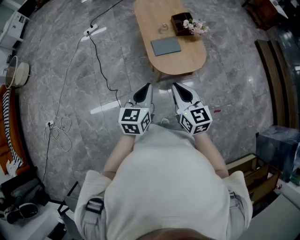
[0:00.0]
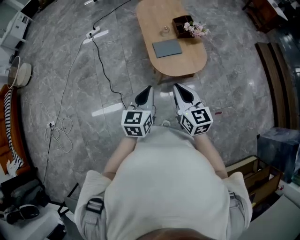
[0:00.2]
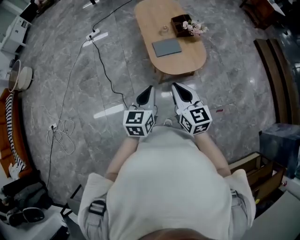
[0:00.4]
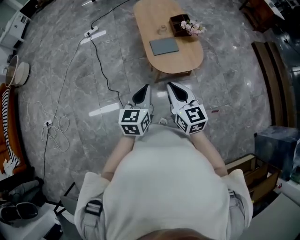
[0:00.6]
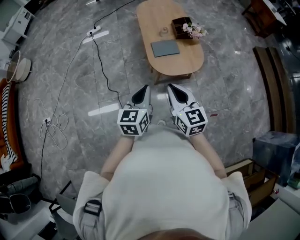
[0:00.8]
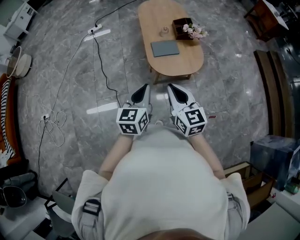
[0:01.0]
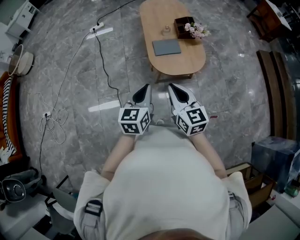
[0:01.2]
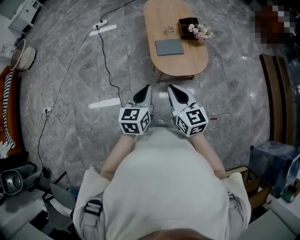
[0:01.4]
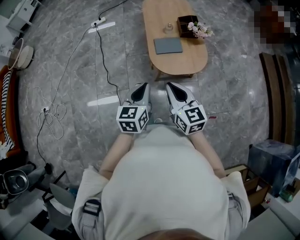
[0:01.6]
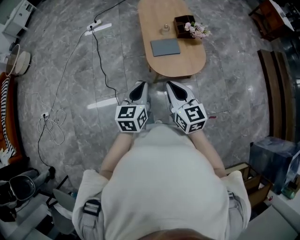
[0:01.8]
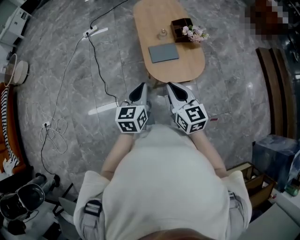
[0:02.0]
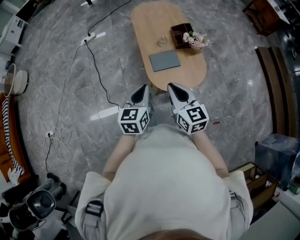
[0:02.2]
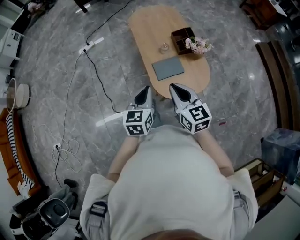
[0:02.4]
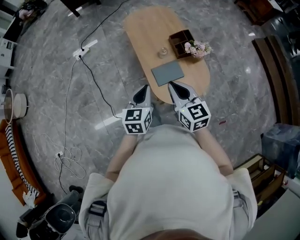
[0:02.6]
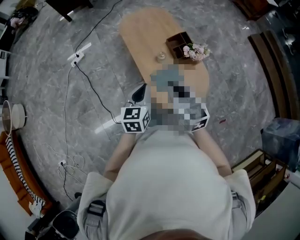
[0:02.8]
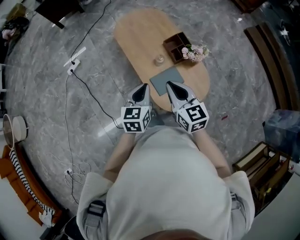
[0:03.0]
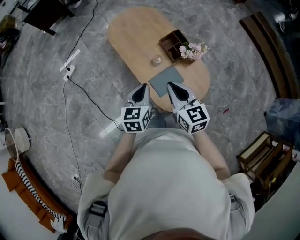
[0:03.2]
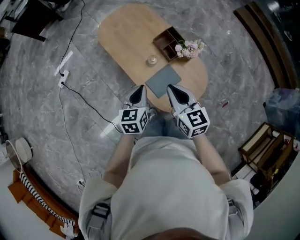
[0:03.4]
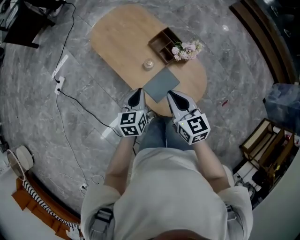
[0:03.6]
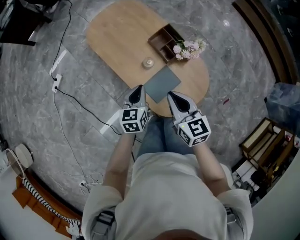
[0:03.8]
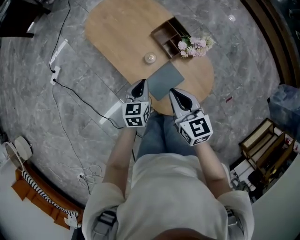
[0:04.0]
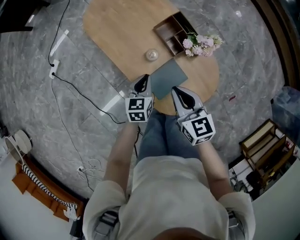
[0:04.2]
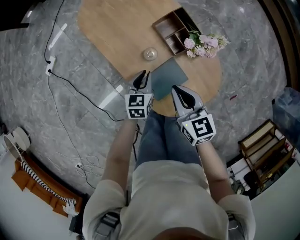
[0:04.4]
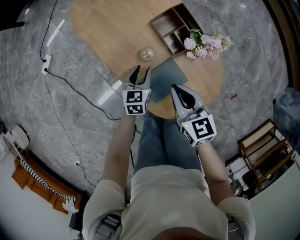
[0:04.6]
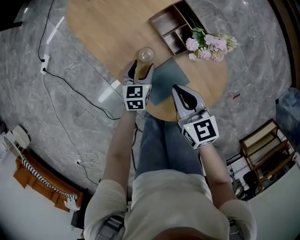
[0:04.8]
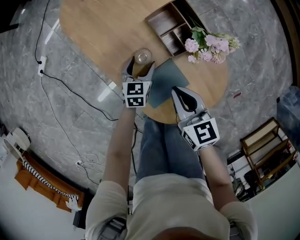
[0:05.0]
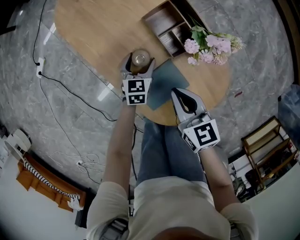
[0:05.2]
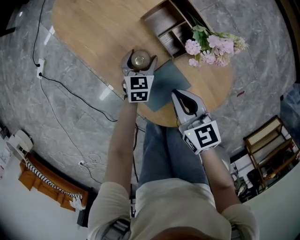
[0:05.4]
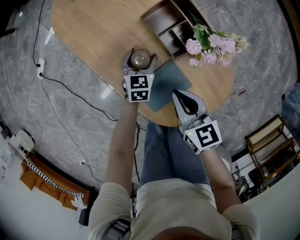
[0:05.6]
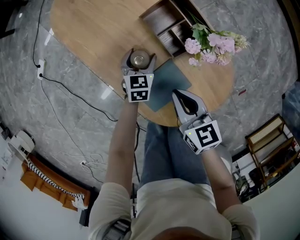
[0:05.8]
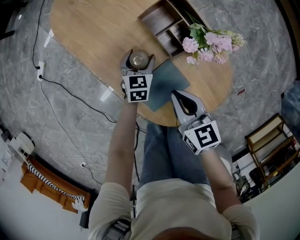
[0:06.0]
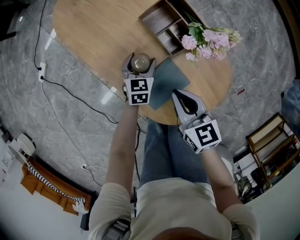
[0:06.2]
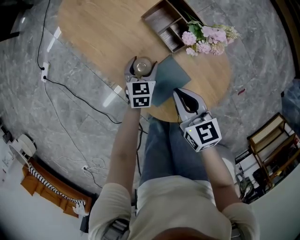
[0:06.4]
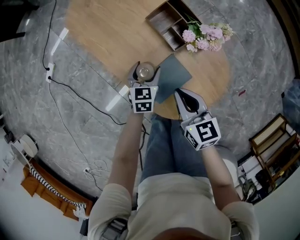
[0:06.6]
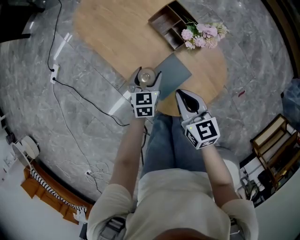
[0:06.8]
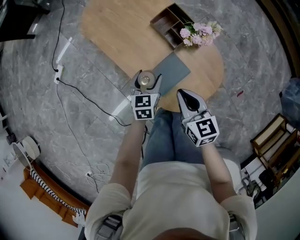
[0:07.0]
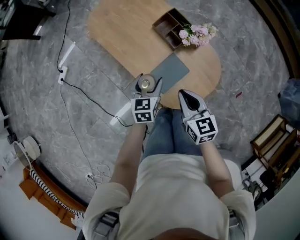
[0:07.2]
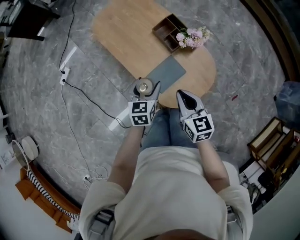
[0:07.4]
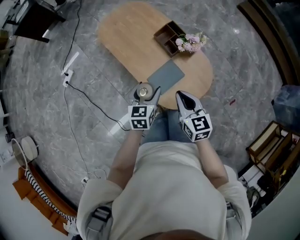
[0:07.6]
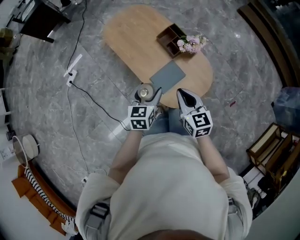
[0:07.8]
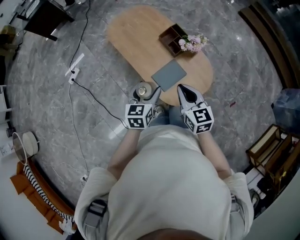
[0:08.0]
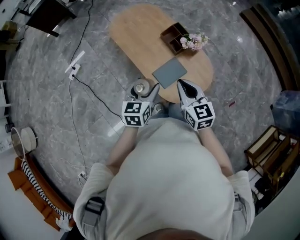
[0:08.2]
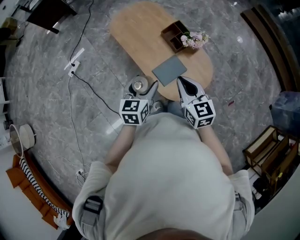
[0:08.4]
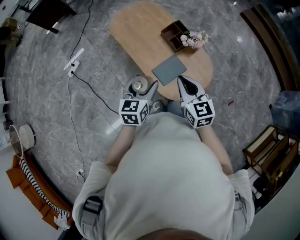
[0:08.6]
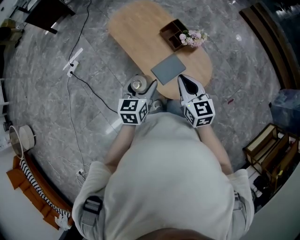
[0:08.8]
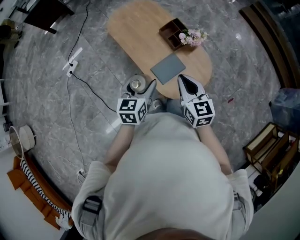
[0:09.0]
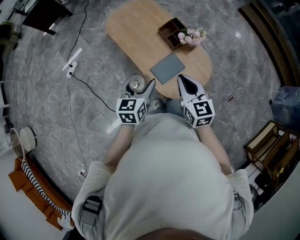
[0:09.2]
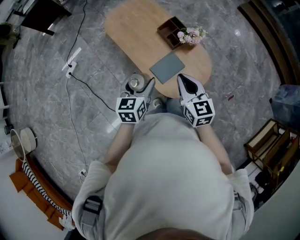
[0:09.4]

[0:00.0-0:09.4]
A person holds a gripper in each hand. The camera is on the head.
0:00.0 to 0:01.6: The grippers move only a little.
0:01.6 to 0:03.2: The left gripper shifts by approximately 40 cm, and swivels roughly 30 degrees, while the right gripper ends up some 40 cm from where it was, and changes its angle by about 30 degrees.
0:03.2 to 0:04.8: The two grippers go some 30 cm downward and forward. The left gripper opens up.
0:04.8 to 0:06.2: The left gripper shifts some 5 cm downward.
0:06.2 to 0:07.8: The left gripper heads upward and backward, covering about 40 cm. Meanwhile the right gripper goes about 25 cm upward and backward.
0:07.8 to 0:09.4: The left gripper travels upward by roughly 5 cm; the right gripper shifts by approximately 5 cm.

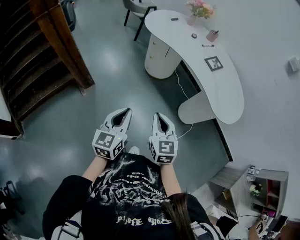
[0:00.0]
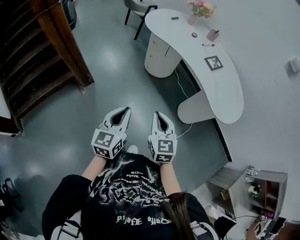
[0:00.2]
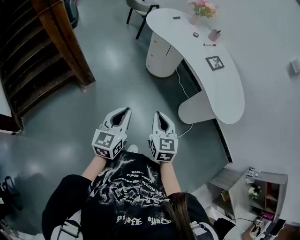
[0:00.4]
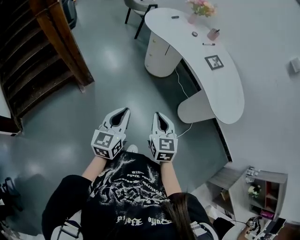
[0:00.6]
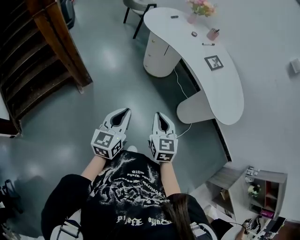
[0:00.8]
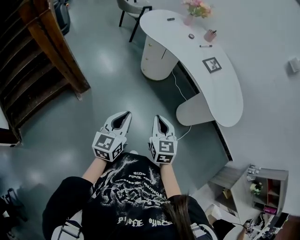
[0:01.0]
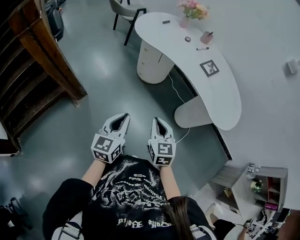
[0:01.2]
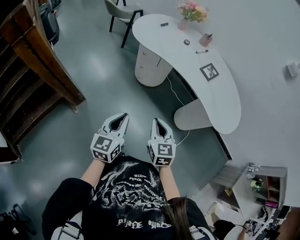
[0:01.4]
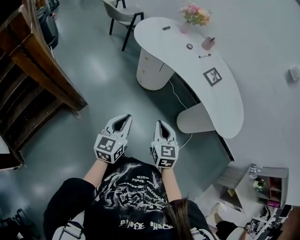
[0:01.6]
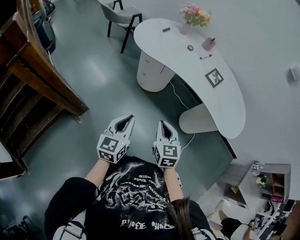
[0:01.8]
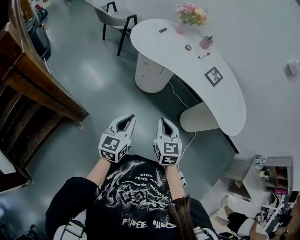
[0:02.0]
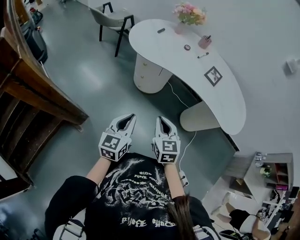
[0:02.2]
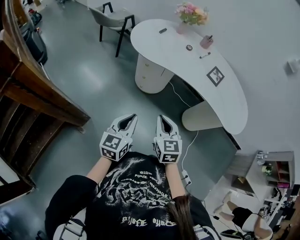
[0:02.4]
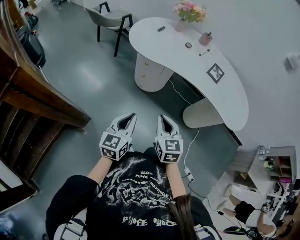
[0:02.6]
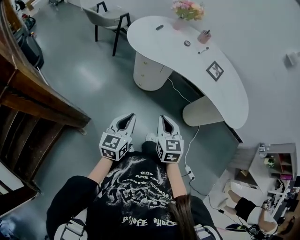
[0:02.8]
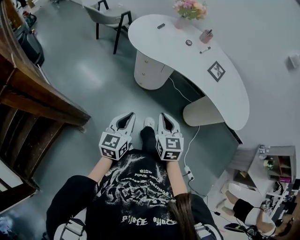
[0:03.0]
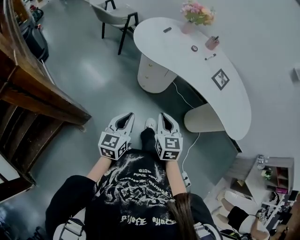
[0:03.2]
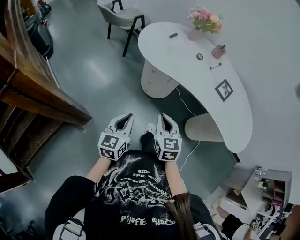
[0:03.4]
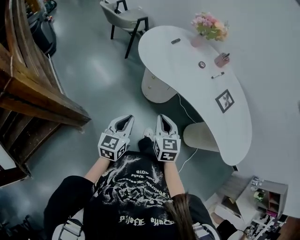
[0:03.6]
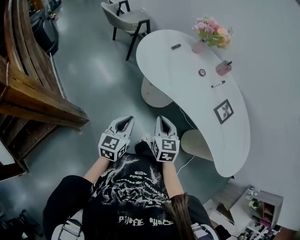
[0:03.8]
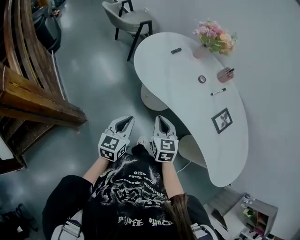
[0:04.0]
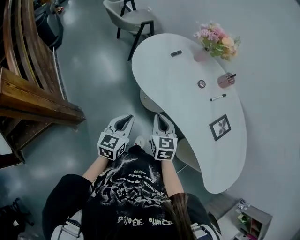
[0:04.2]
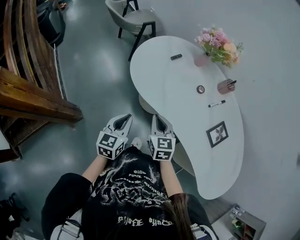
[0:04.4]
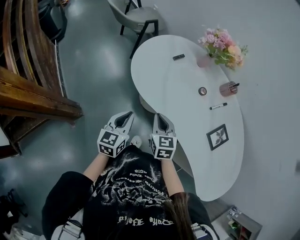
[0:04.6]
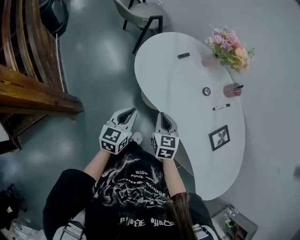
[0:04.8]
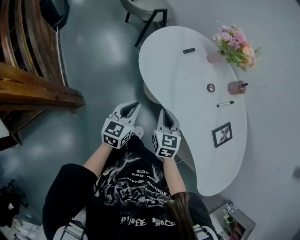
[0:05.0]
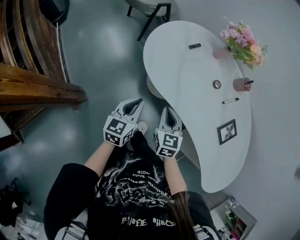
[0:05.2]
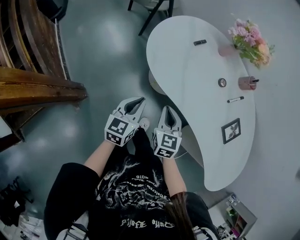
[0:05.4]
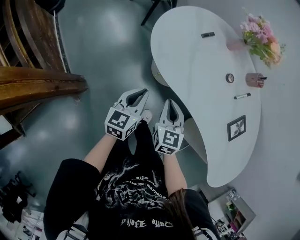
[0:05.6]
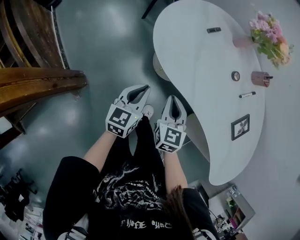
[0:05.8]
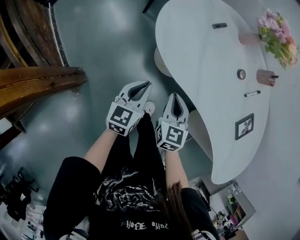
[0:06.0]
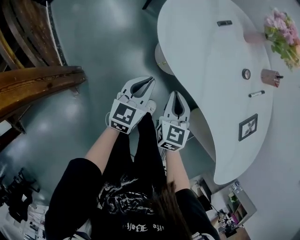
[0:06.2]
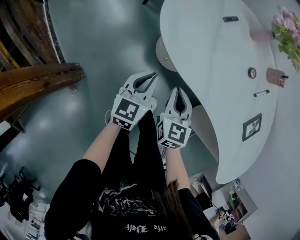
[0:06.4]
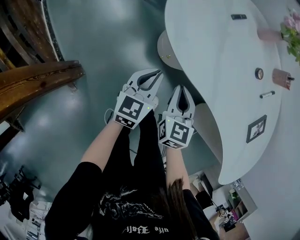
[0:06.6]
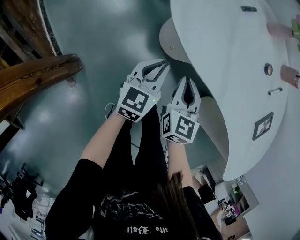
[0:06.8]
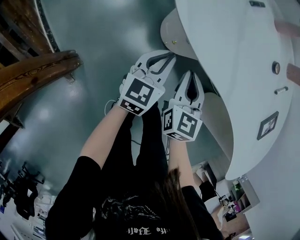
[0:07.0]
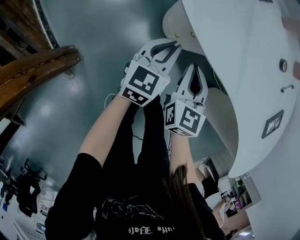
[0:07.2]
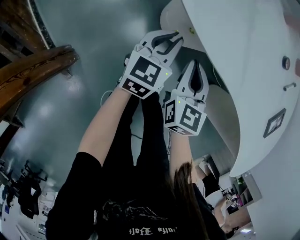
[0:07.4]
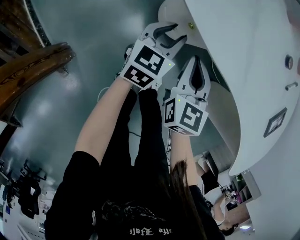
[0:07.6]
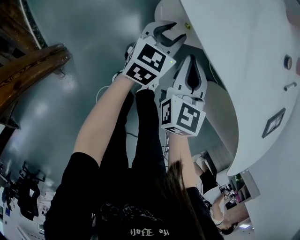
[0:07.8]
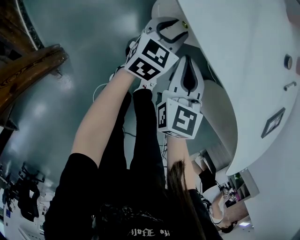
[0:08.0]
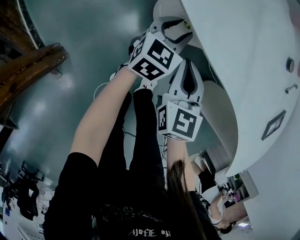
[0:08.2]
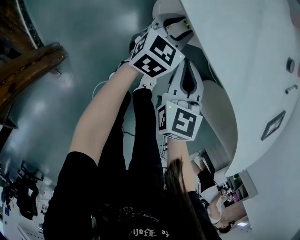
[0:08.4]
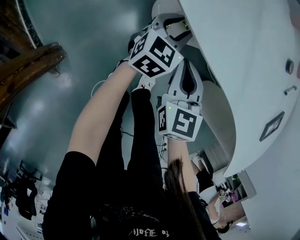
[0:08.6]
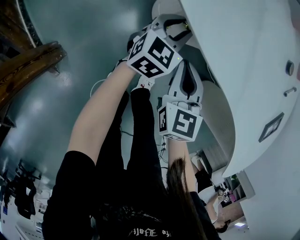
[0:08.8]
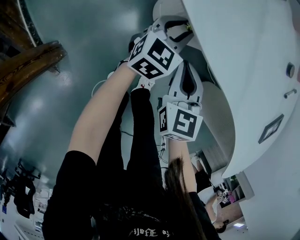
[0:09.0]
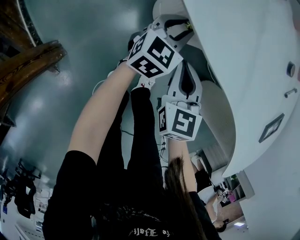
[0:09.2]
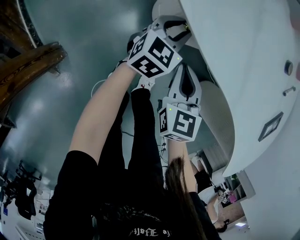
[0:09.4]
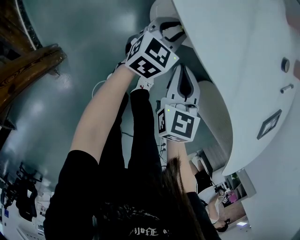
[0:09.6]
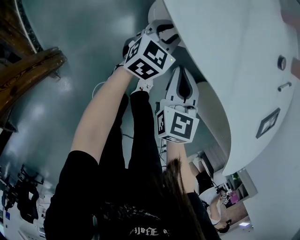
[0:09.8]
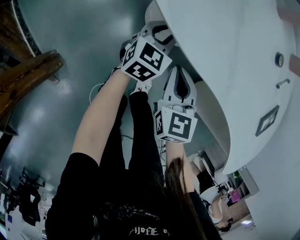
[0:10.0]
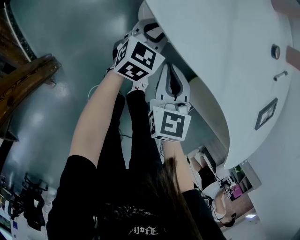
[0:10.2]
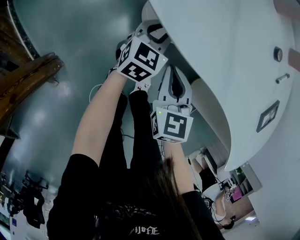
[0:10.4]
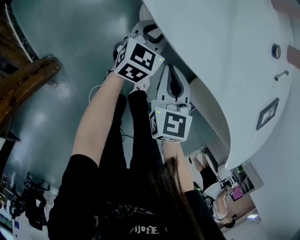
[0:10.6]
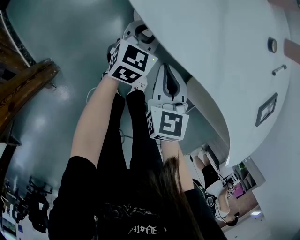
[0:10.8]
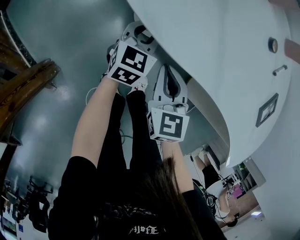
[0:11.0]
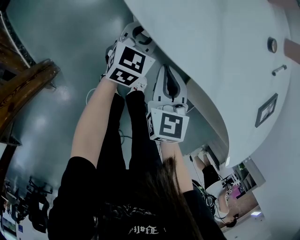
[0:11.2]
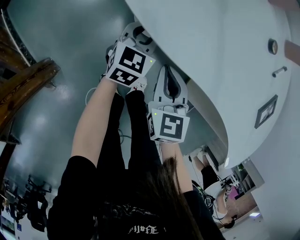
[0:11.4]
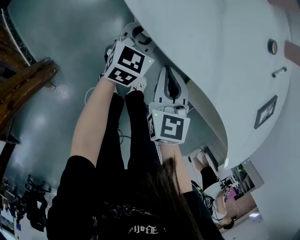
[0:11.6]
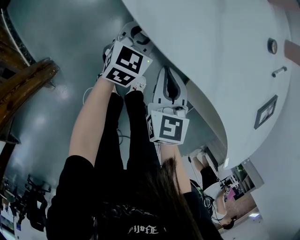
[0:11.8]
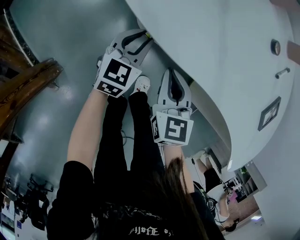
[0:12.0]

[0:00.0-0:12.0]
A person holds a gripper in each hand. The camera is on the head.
0:00.0 to 0:01.6: The two grippers go roughly 15 cm forward.
0:01.6 to 0:03.0: The grippers both shift to the left and forward by some 15 cm.
0:03.0 to 0:04.4: The two grippers go approximately 30 cm forward.
0:04.4 to 0:06.0: The right gripper travels downward and to the left by approximately 10 cm. Meanwhile the left gripper heads downward, forward and to the left, covering about 15 cm.
0:06.0 to 0:07.6: The right gripper is displaced downward by about 15 cm. The left gripper goes approximately 20 cm downward and forward, and opens.
0:07.6 to 0:09.0: The left gripper heads forward, covering some 5 cm.
0:09.0 to 0:12.0: The grippers stay close to where they were, moving slightly.

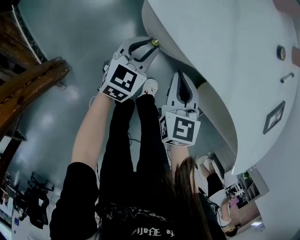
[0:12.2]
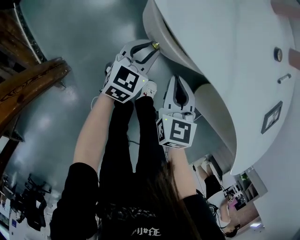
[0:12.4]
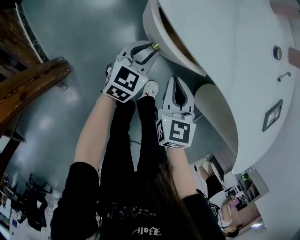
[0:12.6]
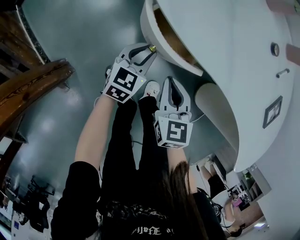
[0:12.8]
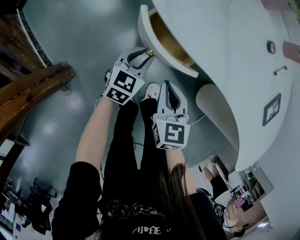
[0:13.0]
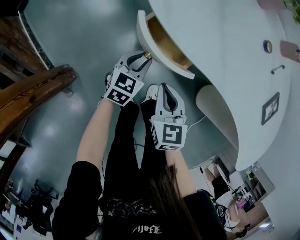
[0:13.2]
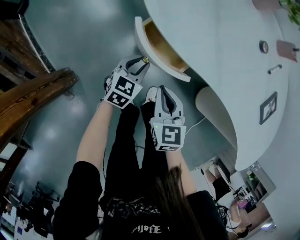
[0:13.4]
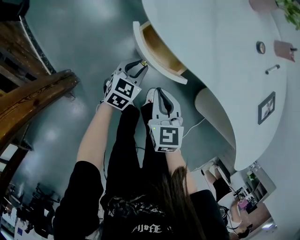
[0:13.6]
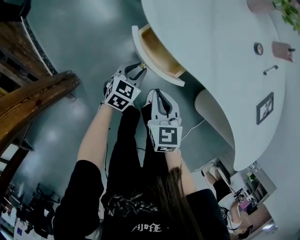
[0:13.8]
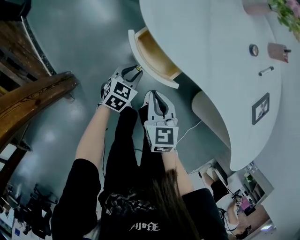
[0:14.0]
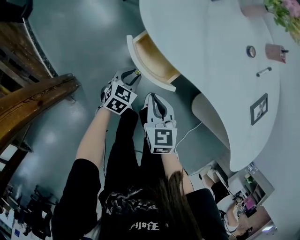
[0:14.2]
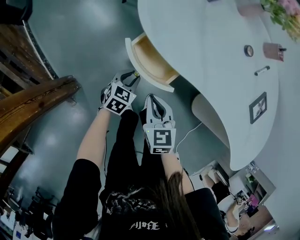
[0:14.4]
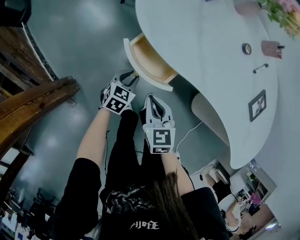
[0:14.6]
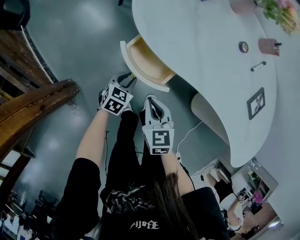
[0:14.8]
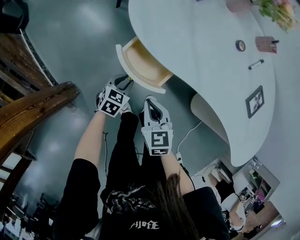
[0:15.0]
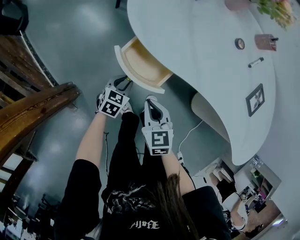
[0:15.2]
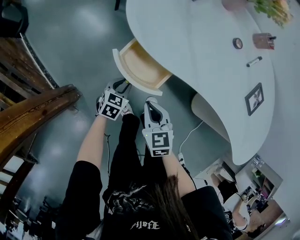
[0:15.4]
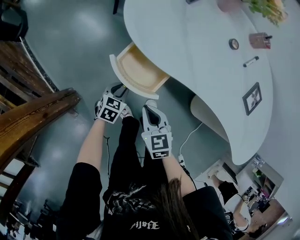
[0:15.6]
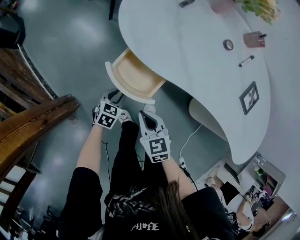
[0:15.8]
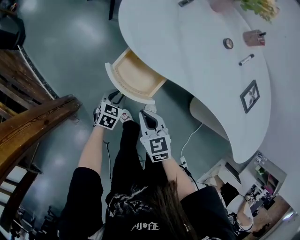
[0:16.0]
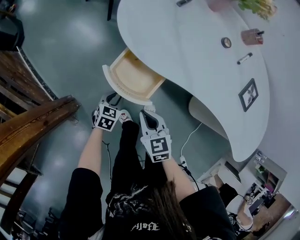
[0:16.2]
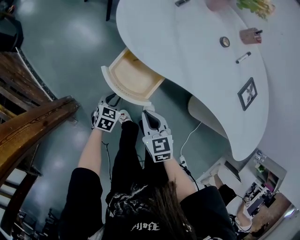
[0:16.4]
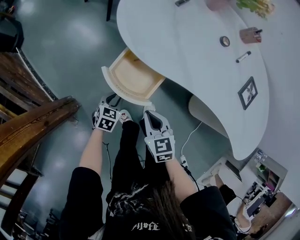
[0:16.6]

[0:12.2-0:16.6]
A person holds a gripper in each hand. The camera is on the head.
0:12.2 to 0:13.6: The two grippers go some 5 cm backward.
0:13.6 to 0:15.2: The grippers stay close to where they were, moving slightly.
0:15.2 to 0:16.6: The grippers stay close to where they were, moving slightly.
